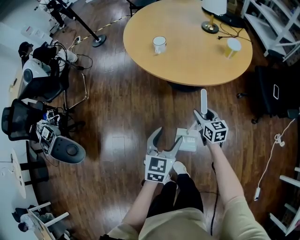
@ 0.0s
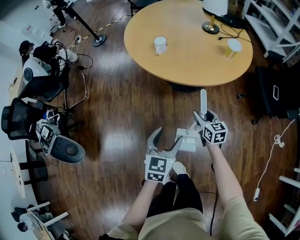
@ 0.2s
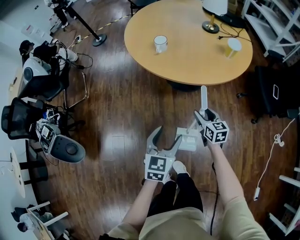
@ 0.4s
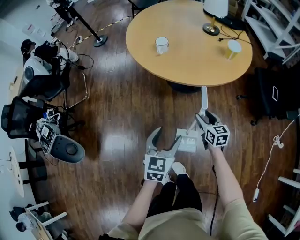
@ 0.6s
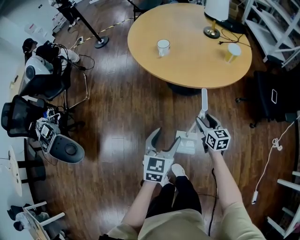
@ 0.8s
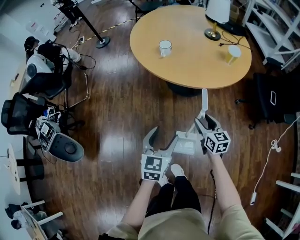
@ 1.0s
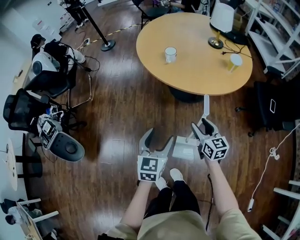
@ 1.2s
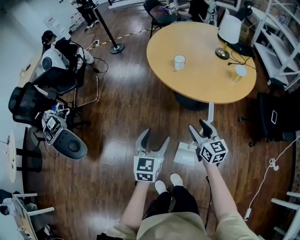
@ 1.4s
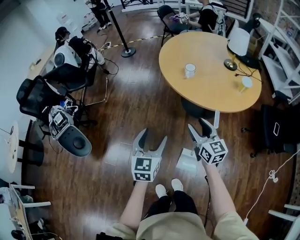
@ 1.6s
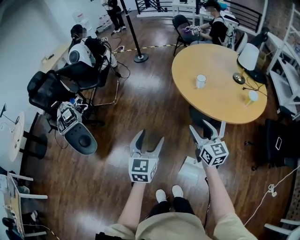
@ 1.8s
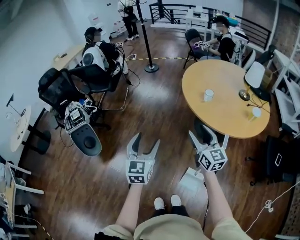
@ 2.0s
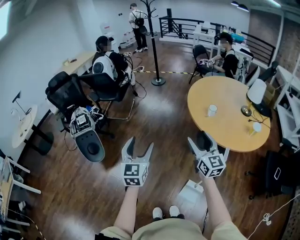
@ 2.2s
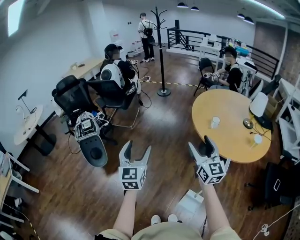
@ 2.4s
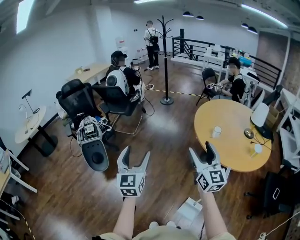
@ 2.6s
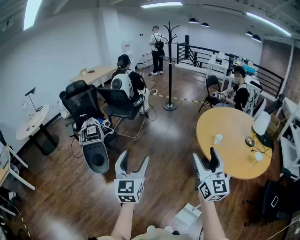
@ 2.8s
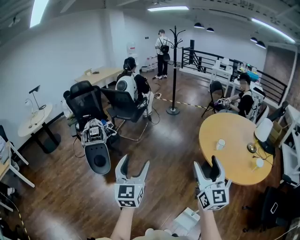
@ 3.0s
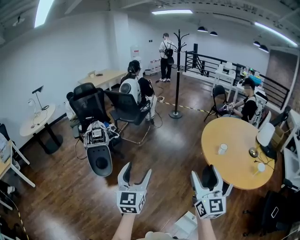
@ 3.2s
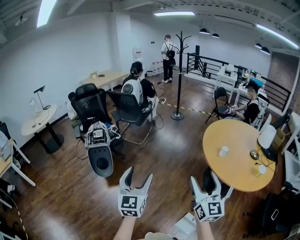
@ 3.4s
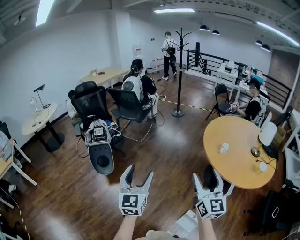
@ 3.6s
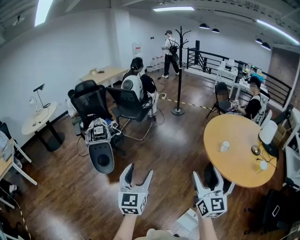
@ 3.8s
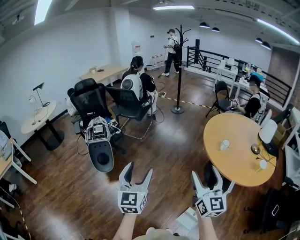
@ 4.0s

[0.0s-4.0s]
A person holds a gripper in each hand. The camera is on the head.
0.0s to 1.4s: The left gripper moves to the left and upward, about 15 cm; the right gripper moves upward and to the left, about 15 cm.
1.4s to 2.6s: The left gripper is displaced to the left and upward by roughly 35 cm, and swivels roughly 40 degrees; the right gripper moves upward and to the left, roughly 35 cm, and swivels about 30 degrees.
2.6s to 4.0s: The left gripper moves approximately 5 cm. Meanwhile the right gripper goes roughly 5 cm backward.

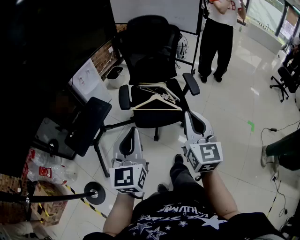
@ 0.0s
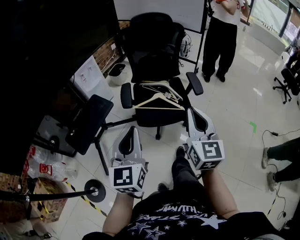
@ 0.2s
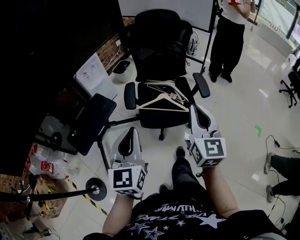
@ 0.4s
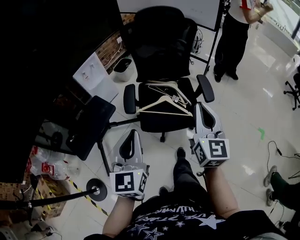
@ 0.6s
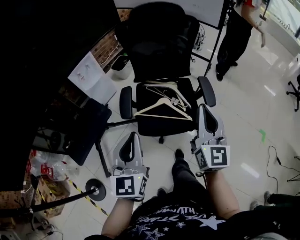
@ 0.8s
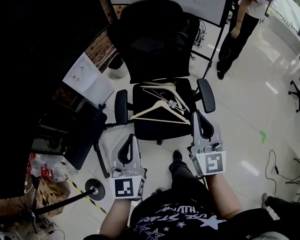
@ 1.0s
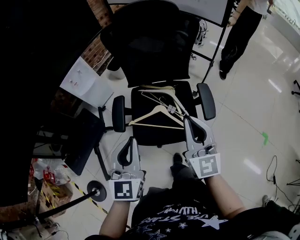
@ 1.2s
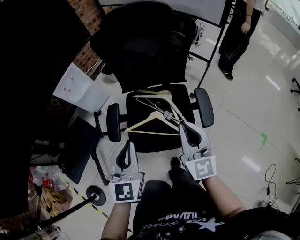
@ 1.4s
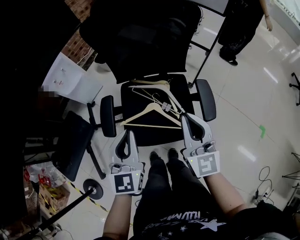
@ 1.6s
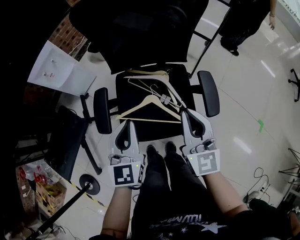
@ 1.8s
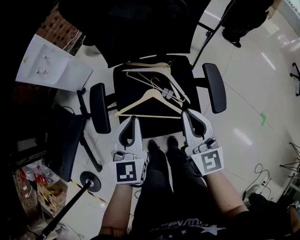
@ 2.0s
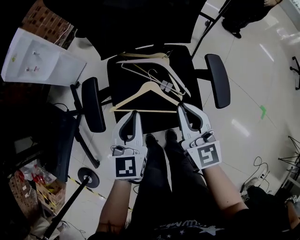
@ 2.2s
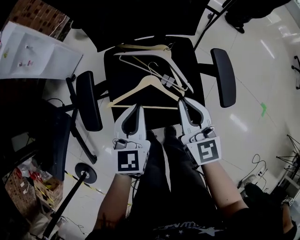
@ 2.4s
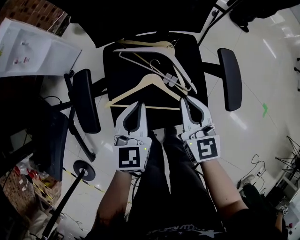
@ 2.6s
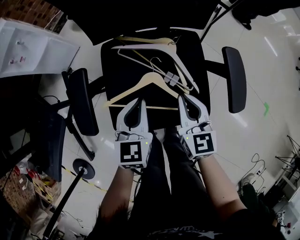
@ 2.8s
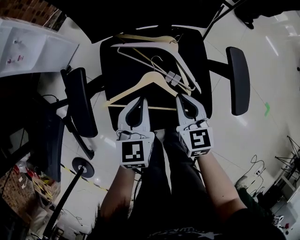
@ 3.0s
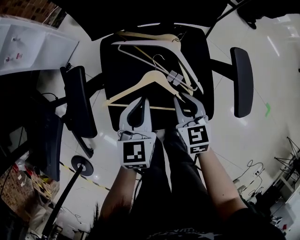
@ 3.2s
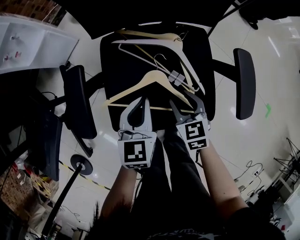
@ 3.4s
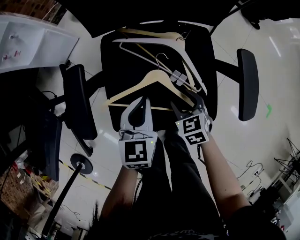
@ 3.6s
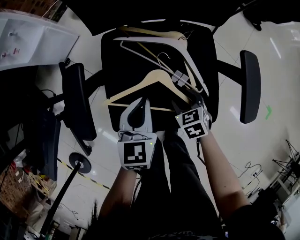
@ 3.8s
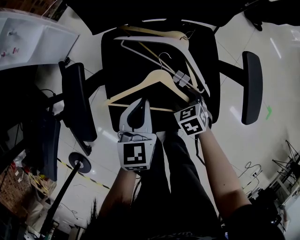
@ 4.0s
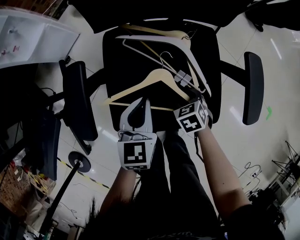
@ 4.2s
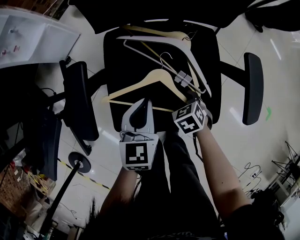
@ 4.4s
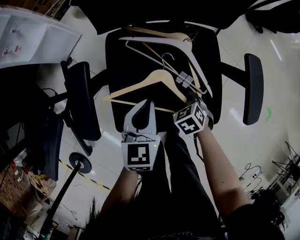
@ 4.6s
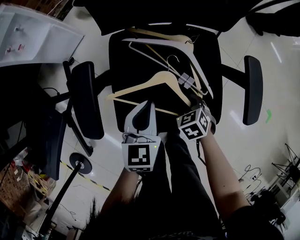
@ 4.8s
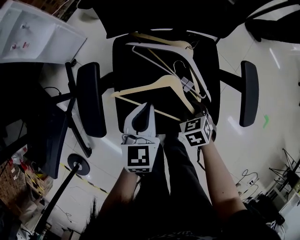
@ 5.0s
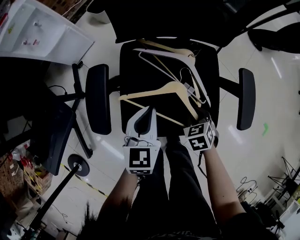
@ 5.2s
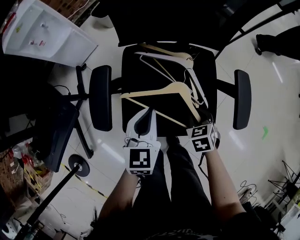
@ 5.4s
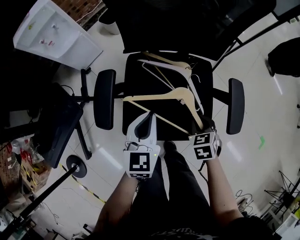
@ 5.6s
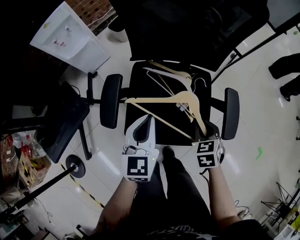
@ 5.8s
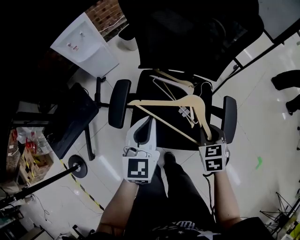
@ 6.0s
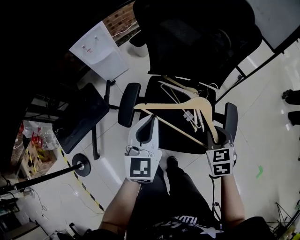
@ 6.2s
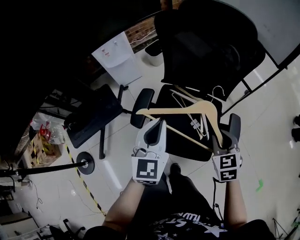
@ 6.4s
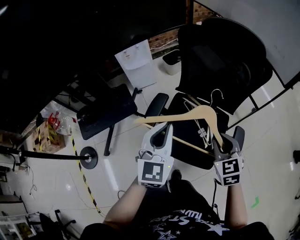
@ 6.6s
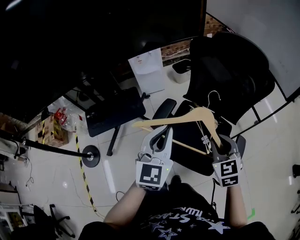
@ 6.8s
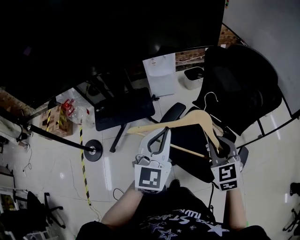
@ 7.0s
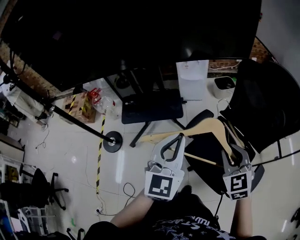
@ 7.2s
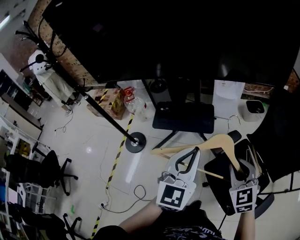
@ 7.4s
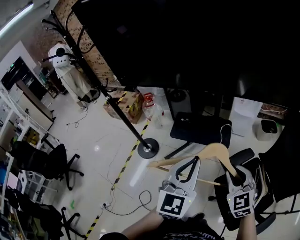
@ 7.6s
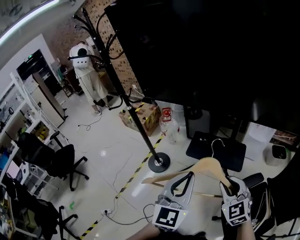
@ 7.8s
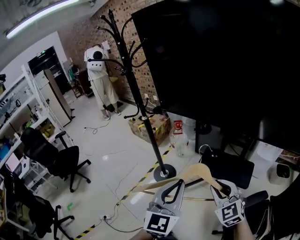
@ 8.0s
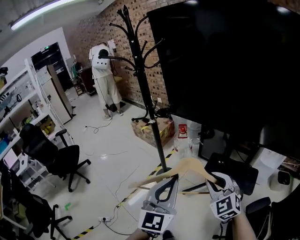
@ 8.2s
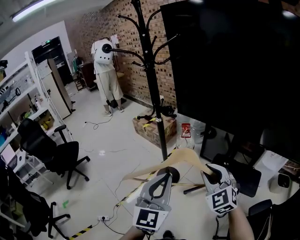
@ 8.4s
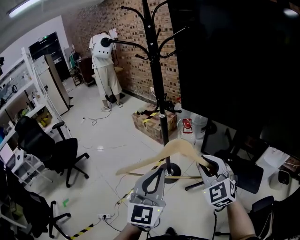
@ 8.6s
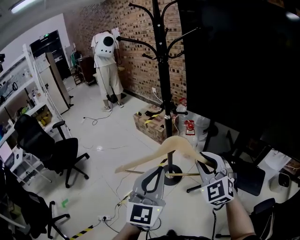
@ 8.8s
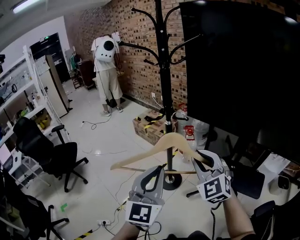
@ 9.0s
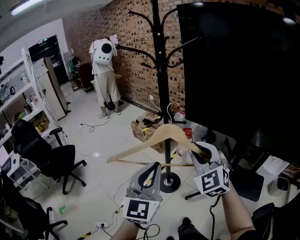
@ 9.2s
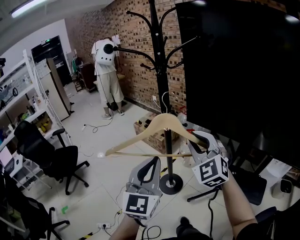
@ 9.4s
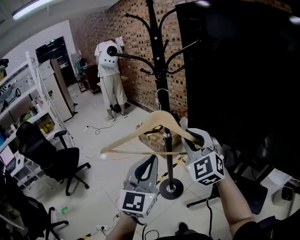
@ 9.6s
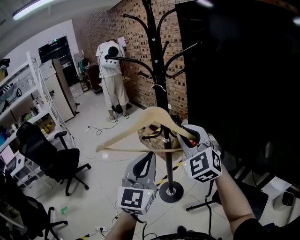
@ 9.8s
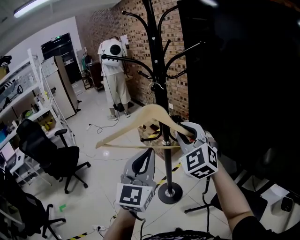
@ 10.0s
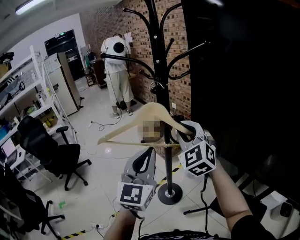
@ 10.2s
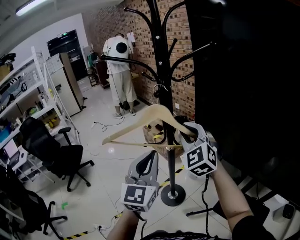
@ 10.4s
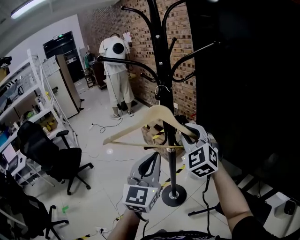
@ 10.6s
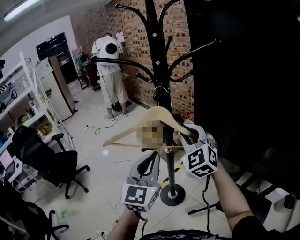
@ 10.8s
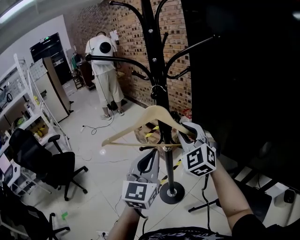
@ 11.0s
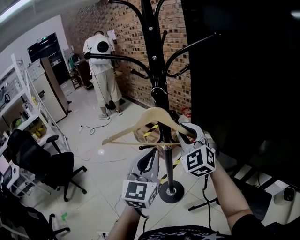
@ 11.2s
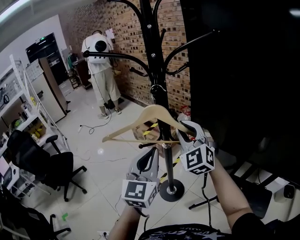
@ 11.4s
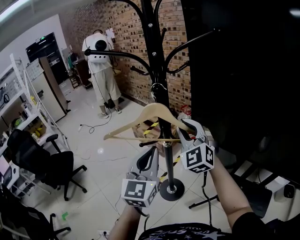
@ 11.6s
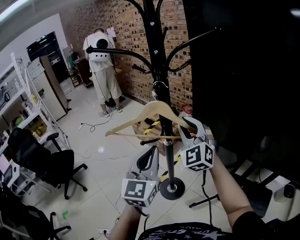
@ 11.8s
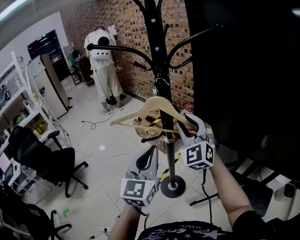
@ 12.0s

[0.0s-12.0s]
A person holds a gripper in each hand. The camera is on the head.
0.0s to 1.6s: The two grippers go some 30 cm forward.
1.6s to 3.0s: Both grippers move downward, about 30 cm. The left gripper changes its angle by some 20 degrees; the right gripper rotates approximately 30 degrees.
3.0s to 4.4s: The right gripper moves downward, some 15 cm, points its fingers roughly 40 degrees further downward, and opens.
4.4s to 6.0s: Both grippers move upward, roughly 25 cm. The right gripper rotates approximately 20 degrees.
6.0s to 7.6s: The right gripper changes place by some 40 cm, and angles its fingers upward, by roughly 30 degrees, while the left gripper ends up roughly 40 cm from where it was, and turns by some 50 degrees.
7.6s to 9.0s: Both grippers are carried about 50 cm. The right gripper turns by approximately 40 degrees; the left gripper turns by about 30 degrees.
9.0s to 10.4s: Both grippers travel together forward, some 25 cm.
10.4s to 12.0s: The left gripper shifts by approximately 5 cm.

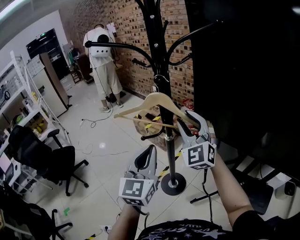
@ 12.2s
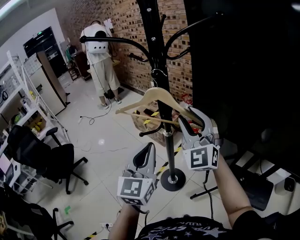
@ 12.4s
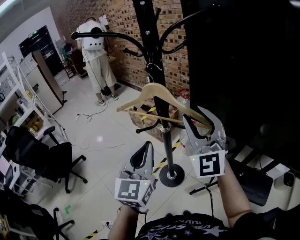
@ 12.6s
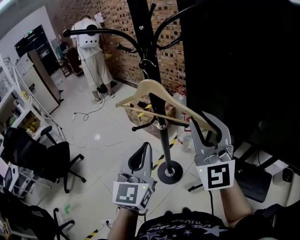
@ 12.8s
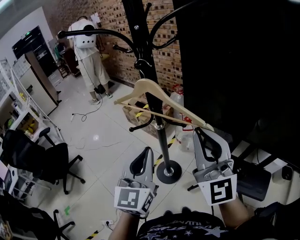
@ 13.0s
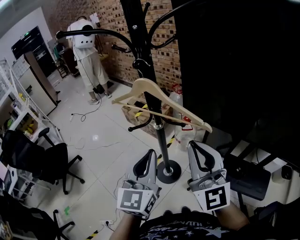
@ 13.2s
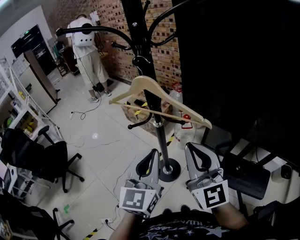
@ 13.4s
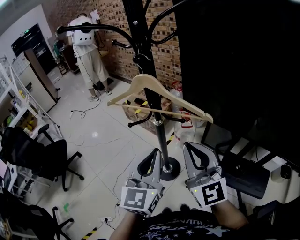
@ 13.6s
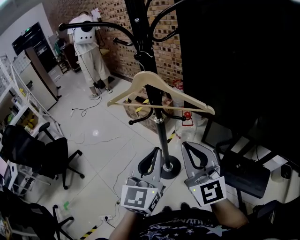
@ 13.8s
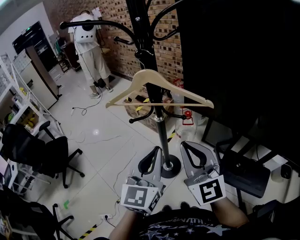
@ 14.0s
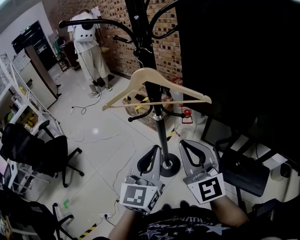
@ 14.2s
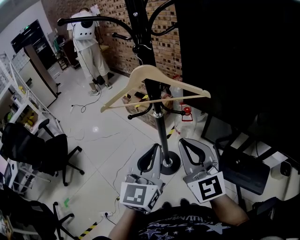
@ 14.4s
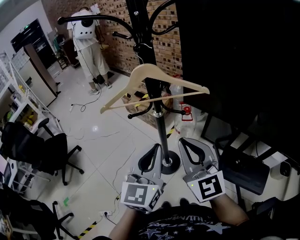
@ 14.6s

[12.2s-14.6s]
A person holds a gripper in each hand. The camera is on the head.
12.2s to 13.4s: The right gripper travels backward by roughly 15 cm, swivels roughly 40 degrees, and closes. Meanwhile the left gripper changes place by some 5 cm.
13.4s to 14.6s: The grippers stay close to where they were, moving slightly.

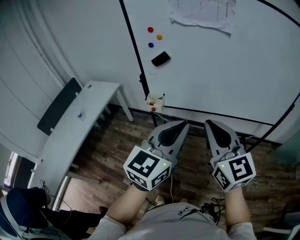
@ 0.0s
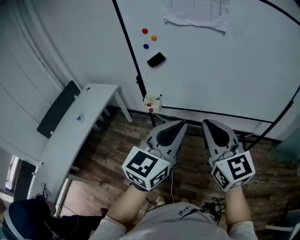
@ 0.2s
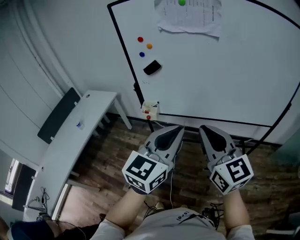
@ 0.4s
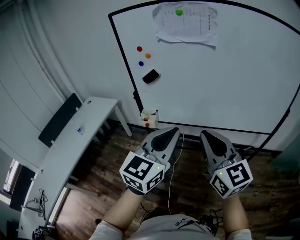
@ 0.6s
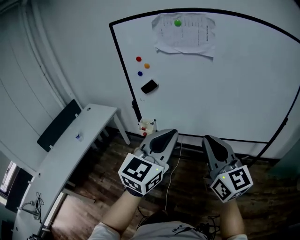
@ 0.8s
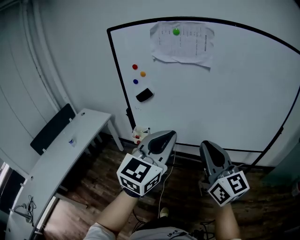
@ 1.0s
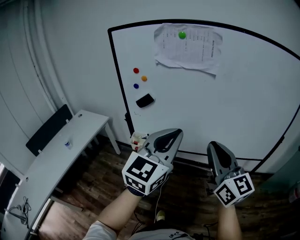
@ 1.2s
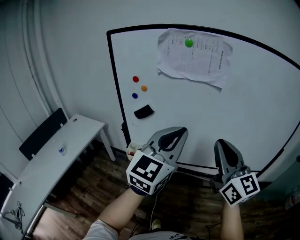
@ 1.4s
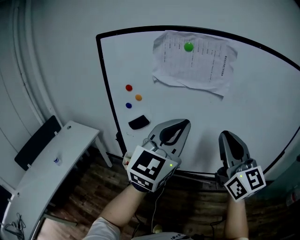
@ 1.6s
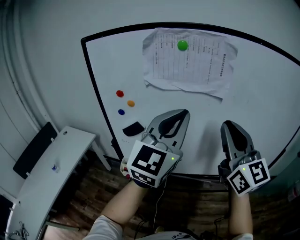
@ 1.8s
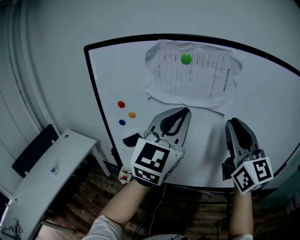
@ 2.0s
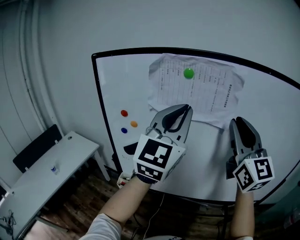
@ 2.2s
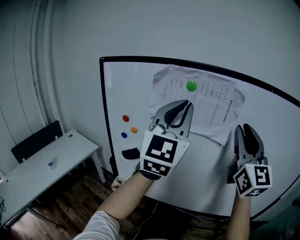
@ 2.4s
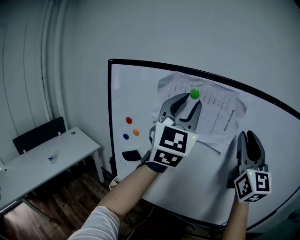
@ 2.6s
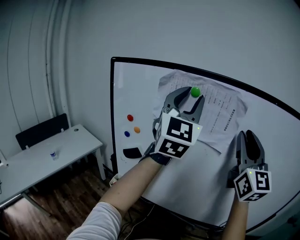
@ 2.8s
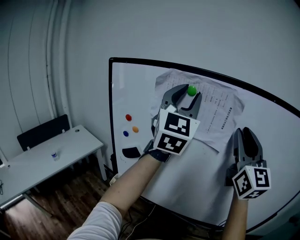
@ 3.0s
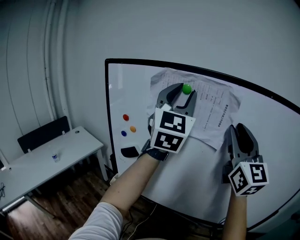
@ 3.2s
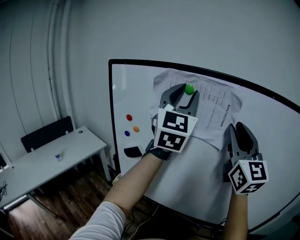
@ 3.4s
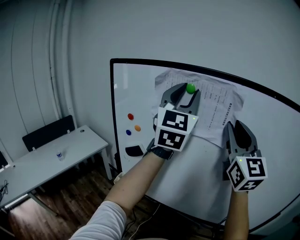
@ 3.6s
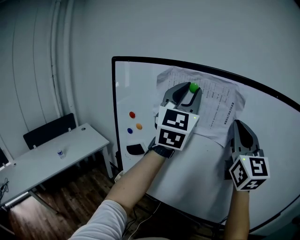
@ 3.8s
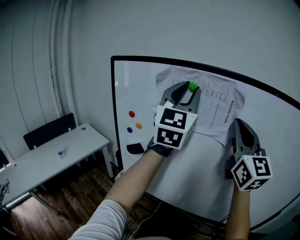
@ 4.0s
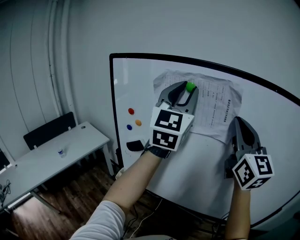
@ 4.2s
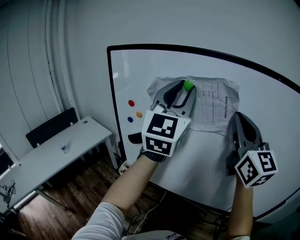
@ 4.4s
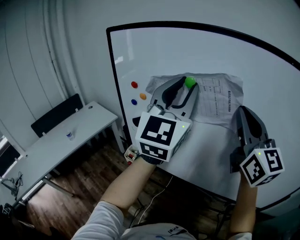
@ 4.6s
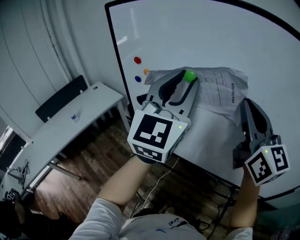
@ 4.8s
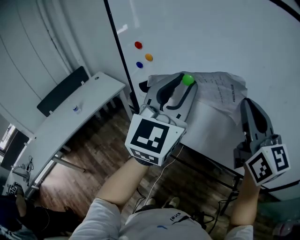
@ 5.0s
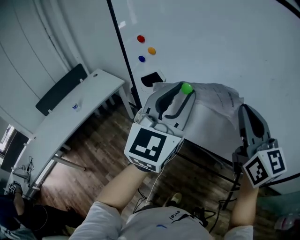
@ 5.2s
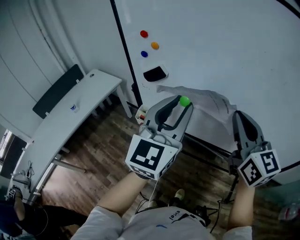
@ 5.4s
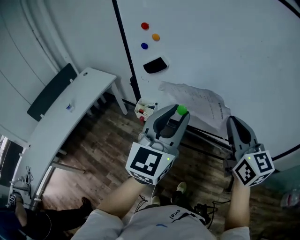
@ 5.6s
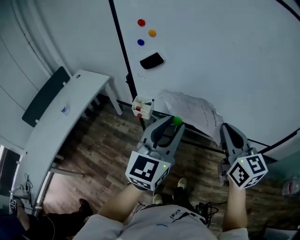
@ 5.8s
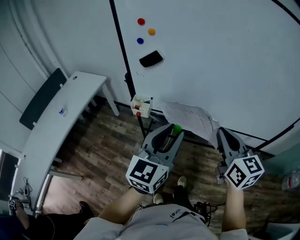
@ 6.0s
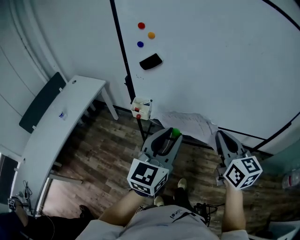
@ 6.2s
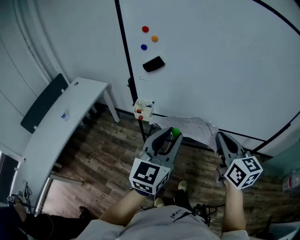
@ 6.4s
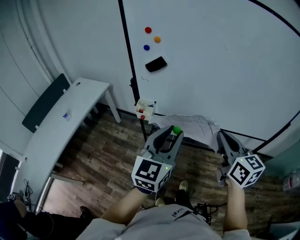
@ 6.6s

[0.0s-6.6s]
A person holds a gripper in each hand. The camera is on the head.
0.0s to 1.6s: The left gripper heads forward and upward, covering roughly 30 cm. Meanwhile the right gripper shifts roughly 25 cm forward, upward and to the right.
1.6s to 3.2s: The right gripper goes some 20 cm forward, upward and to the right, and opens its fingers. The left gripper heads forward and upward, covering roughly 25 cm, swivels about 30 degrees, and opens up.
3.2s to 5.0s: The left gripper heads downward and backward, covering about 20 cm, while the right gripper heads downward, covering some 15 cm, rotates some 30 degrees, and closes up.
5.0s to 6.6s: The two grippers go about 30 cm backward and downward. The left gripper swivels some 20 degrees; the right gripper rotates some 20 degrees.
